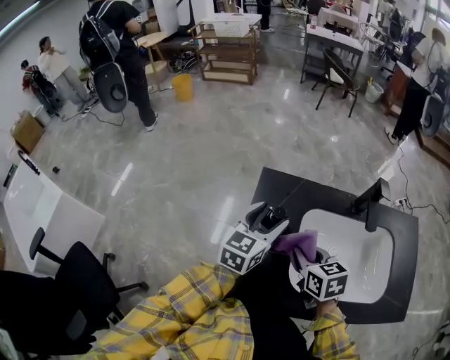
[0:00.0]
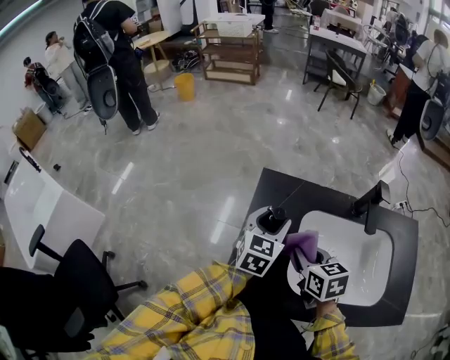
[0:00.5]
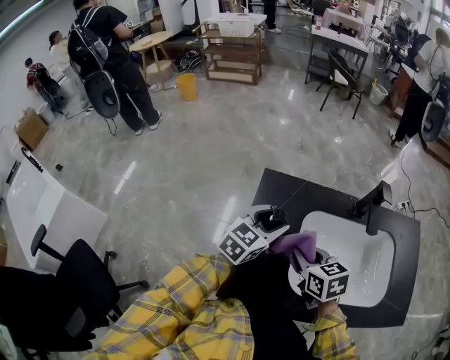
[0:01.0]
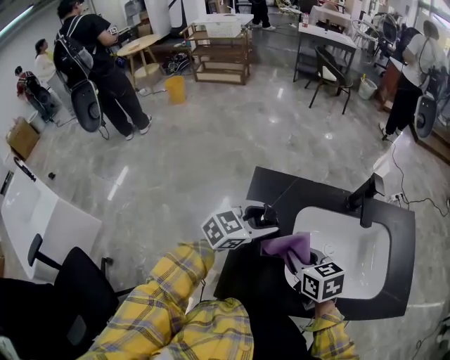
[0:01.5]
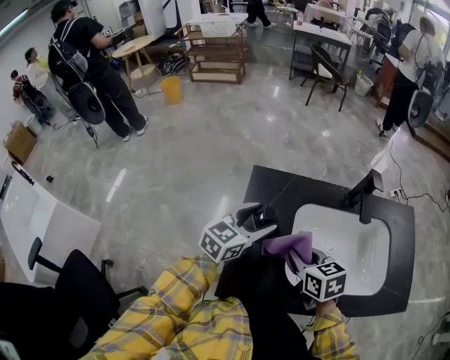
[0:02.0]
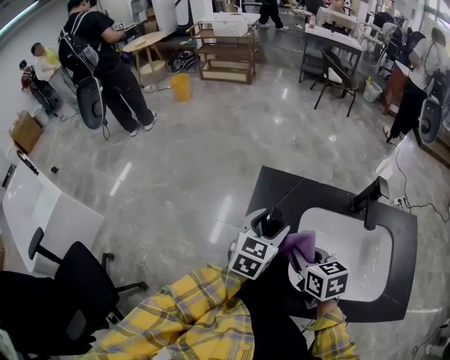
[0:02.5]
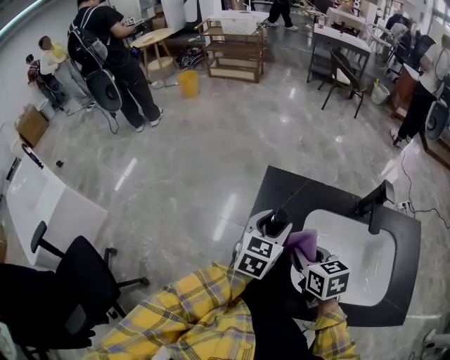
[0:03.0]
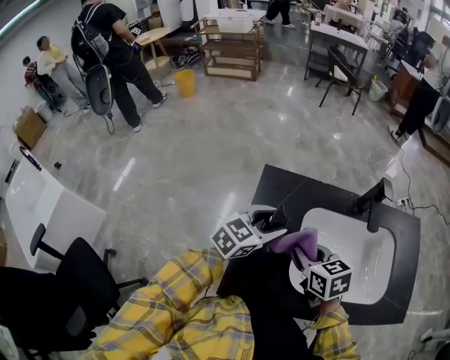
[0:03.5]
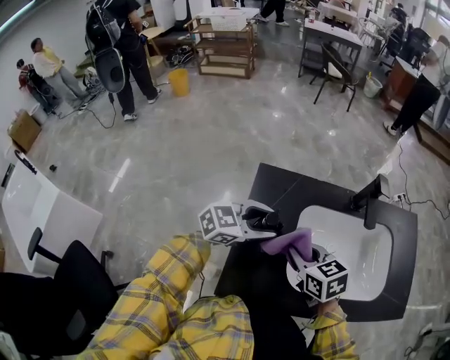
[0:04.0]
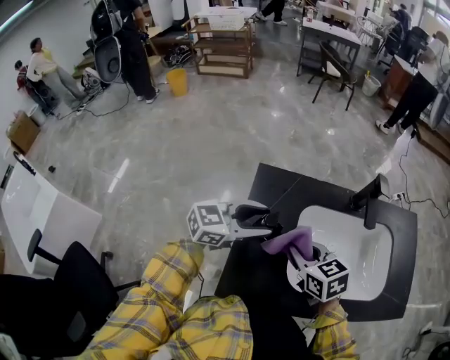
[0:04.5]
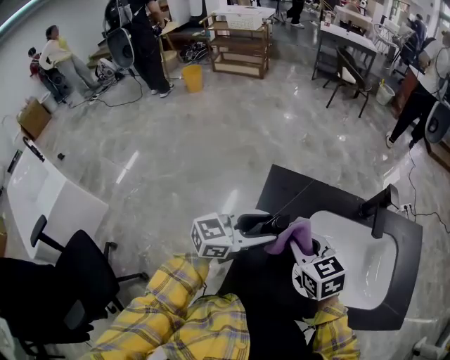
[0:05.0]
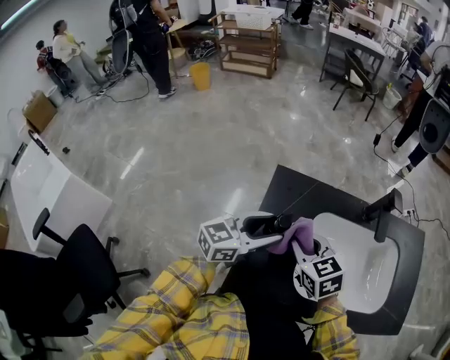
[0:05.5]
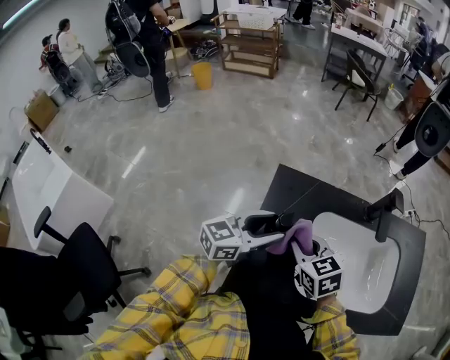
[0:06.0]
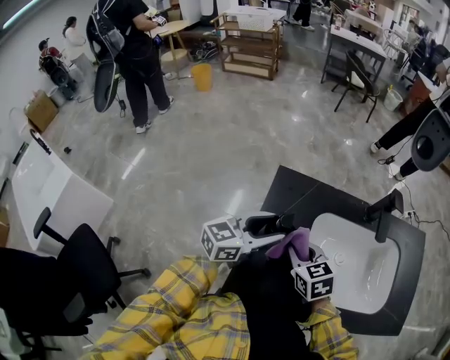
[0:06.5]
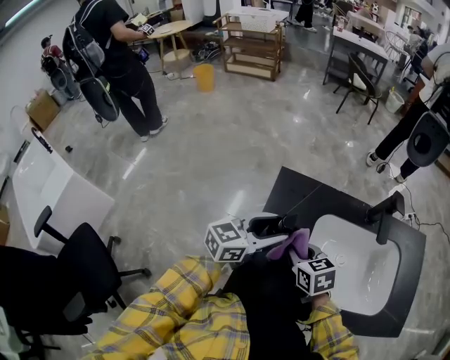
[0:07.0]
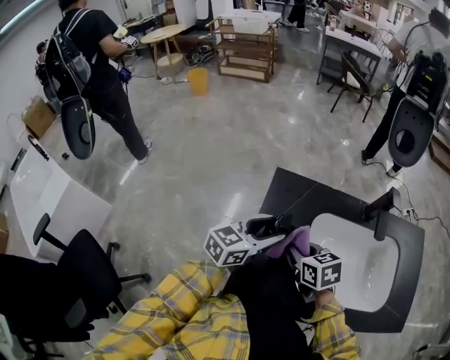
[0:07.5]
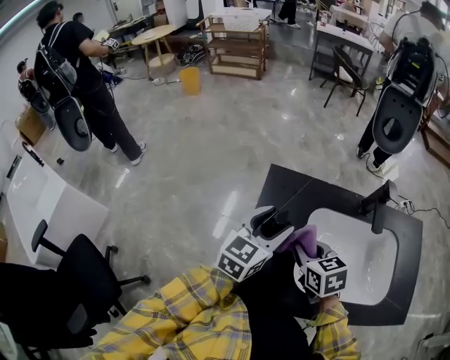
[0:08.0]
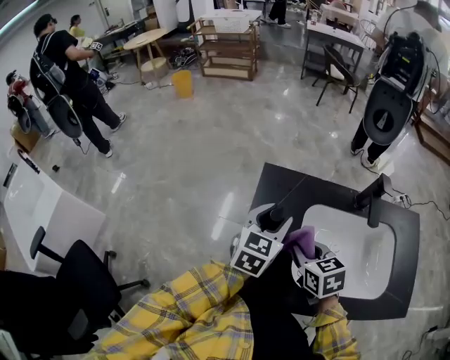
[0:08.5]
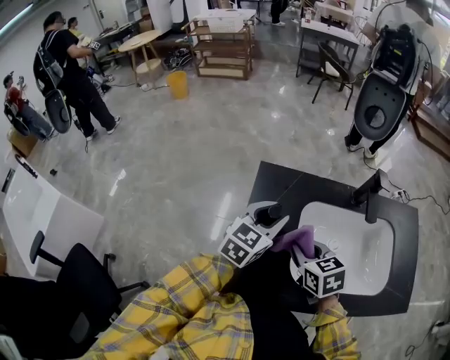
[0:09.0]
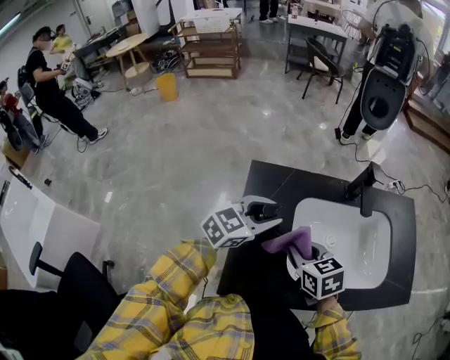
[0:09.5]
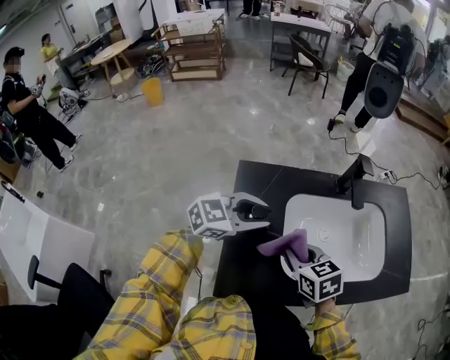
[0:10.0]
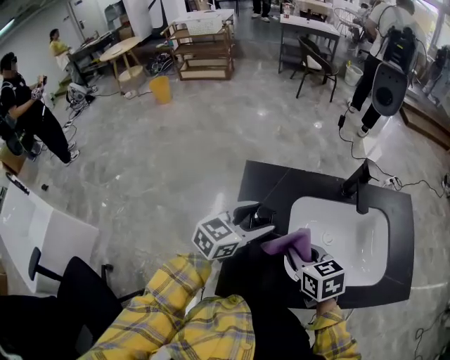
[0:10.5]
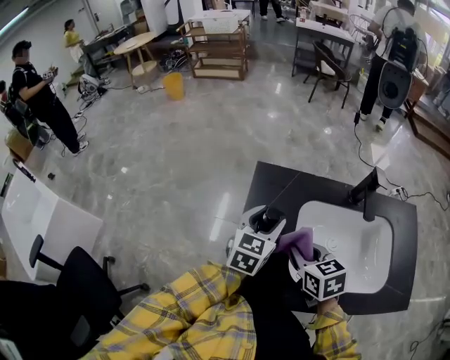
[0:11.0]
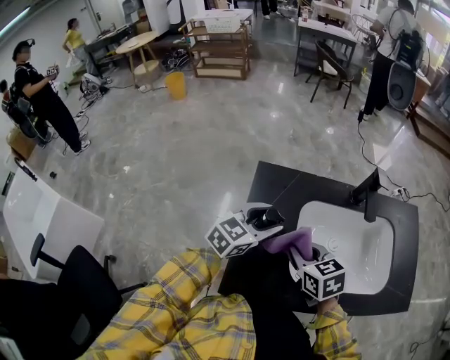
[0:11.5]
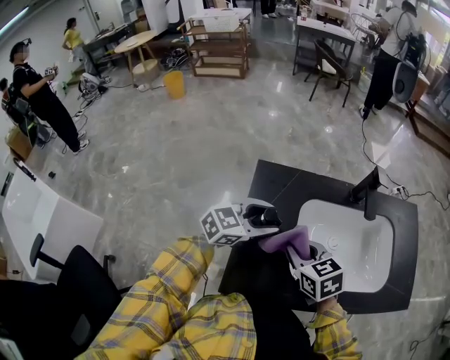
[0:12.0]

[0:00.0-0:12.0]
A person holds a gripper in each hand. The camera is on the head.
0:02.0 to 0:04.0: The left gripper changes its angle by approximately 30 degrees.
0:04.0 to 0:06.0: The left gripper rotates about 30 degrees.
0:06.0 to 0:08.0: The left gripper swivels roughly 20 degrees.
0:08.0 to 0:10.0: The left gripper changes its angle by some 50 degrees, and closes. Meanwhile the right gripper ends up approximately 5 cm from where it was.

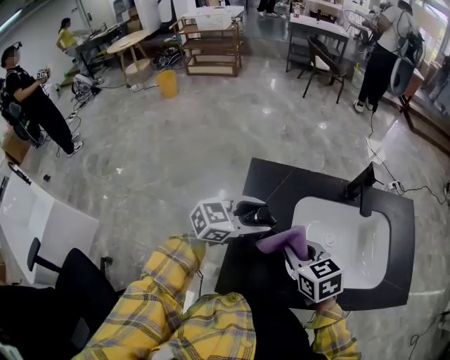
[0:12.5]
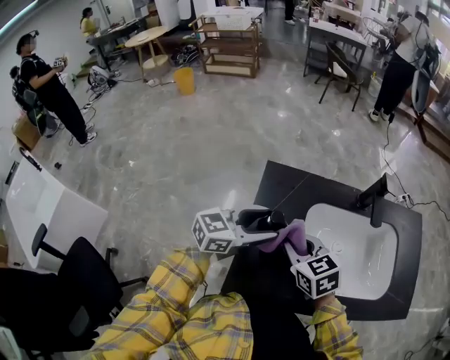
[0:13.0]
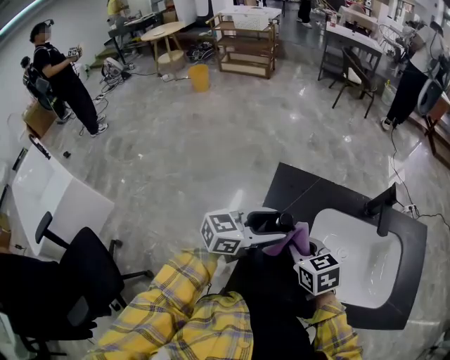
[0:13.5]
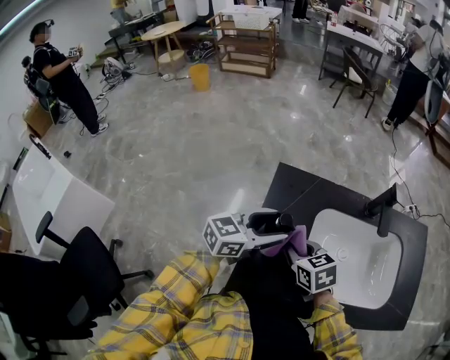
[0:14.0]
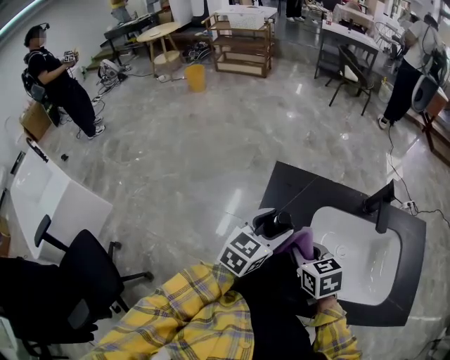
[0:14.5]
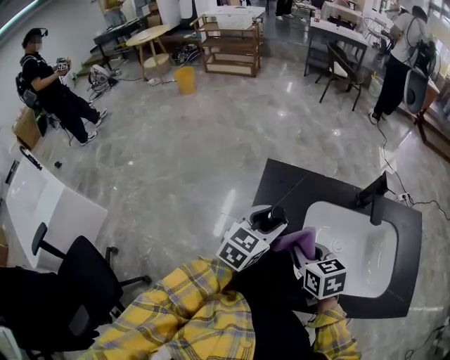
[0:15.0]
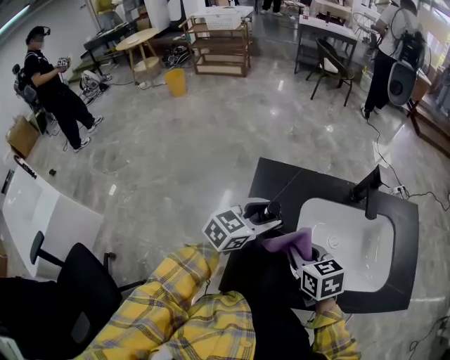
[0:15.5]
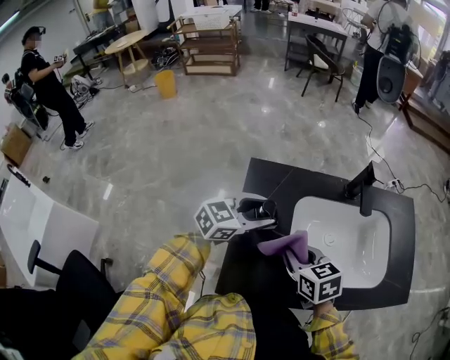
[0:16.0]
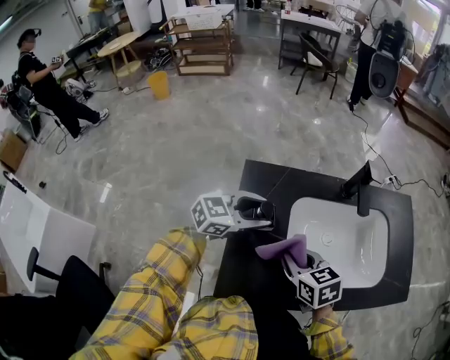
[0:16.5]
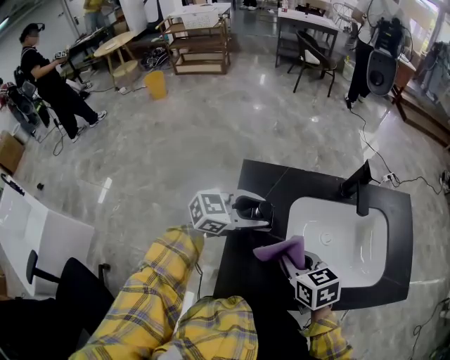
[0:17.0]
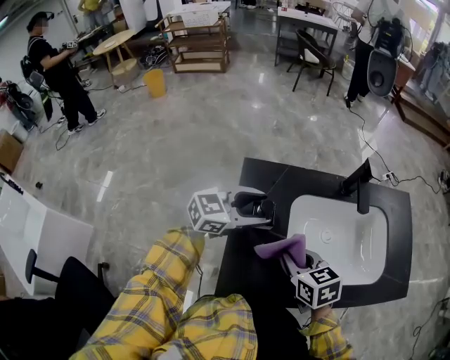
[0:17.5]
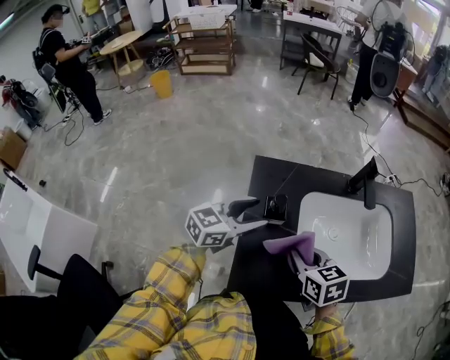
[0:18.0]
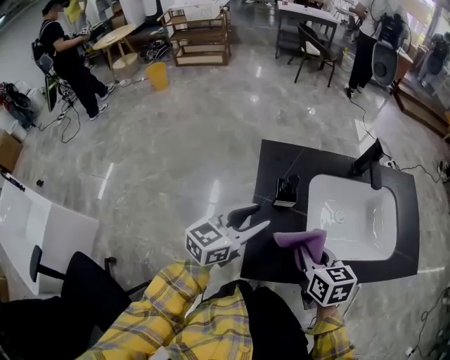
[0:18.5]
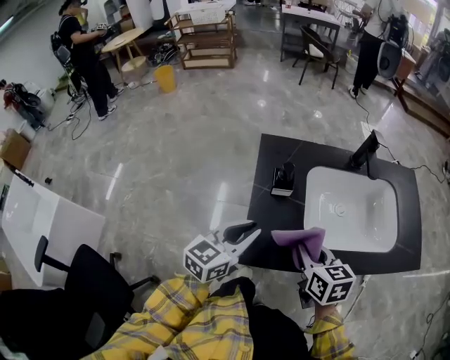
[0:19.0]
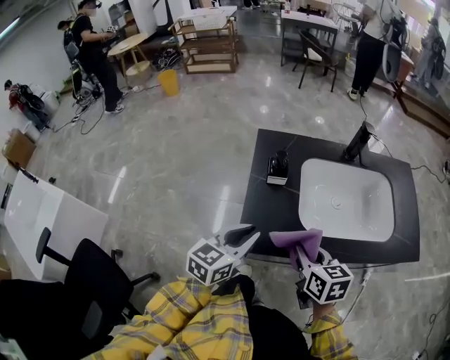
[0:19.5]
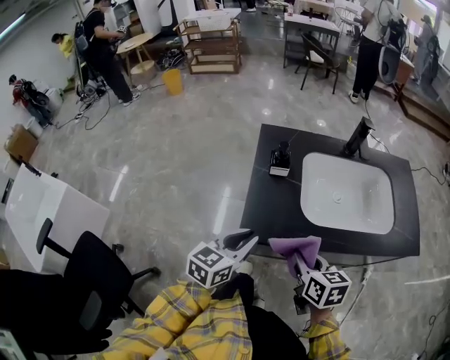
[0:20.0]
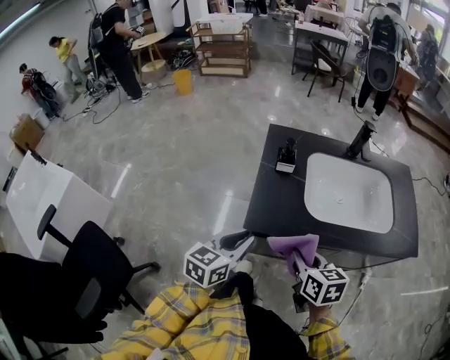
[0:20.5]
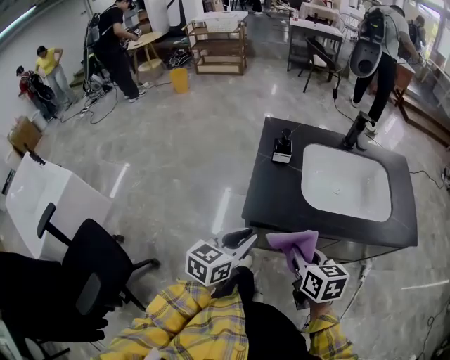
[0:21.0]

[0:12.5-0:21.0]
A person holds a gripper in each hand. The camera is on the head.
0:12.5 to 0:14.5: The left gripper swivels some 40 degrees.
0:14.5 to 0:16.5: The left gripper changes its angle by about 40 degrees.
0:16.5 to 0:19.0: The left gripper heads backward, covering approximately 20 cm, swivels roughly 30 degrees, and closes up, while the right gripper is displaced backward by about 10 cm.
0:19.0 to 0:21.0: Both grippers travel together backward, roughly 15 cm.

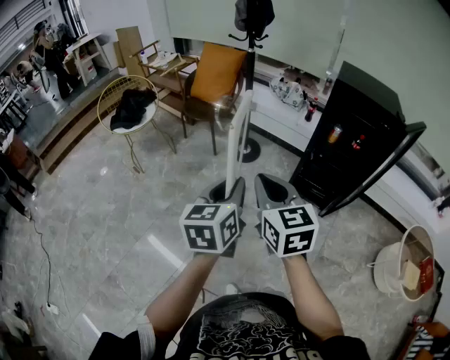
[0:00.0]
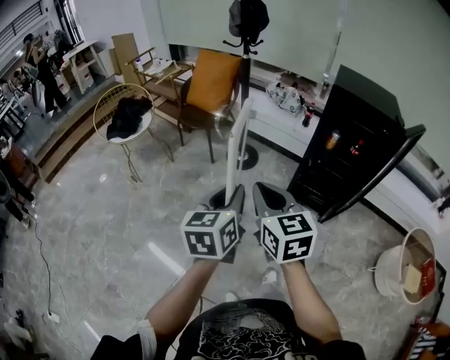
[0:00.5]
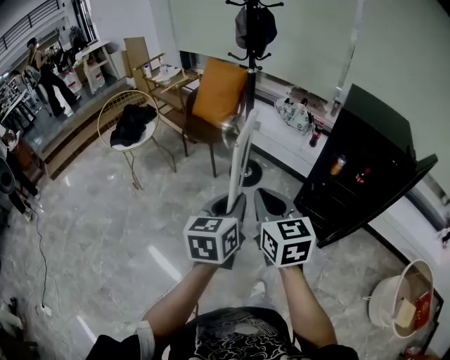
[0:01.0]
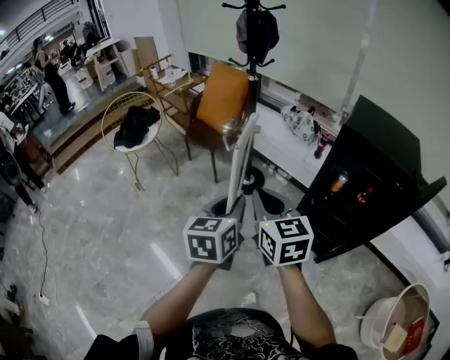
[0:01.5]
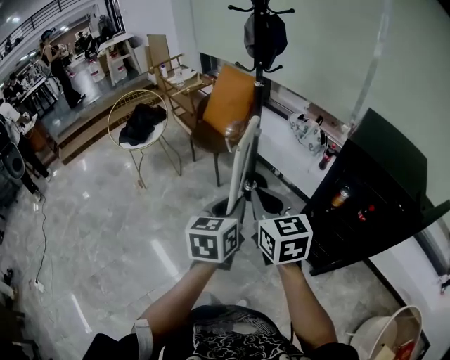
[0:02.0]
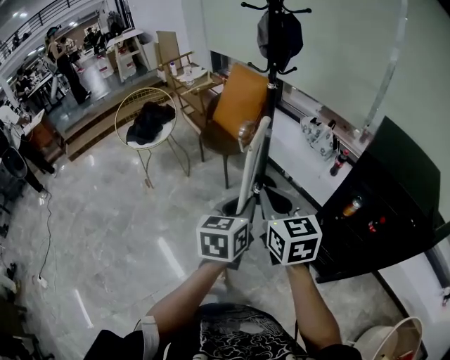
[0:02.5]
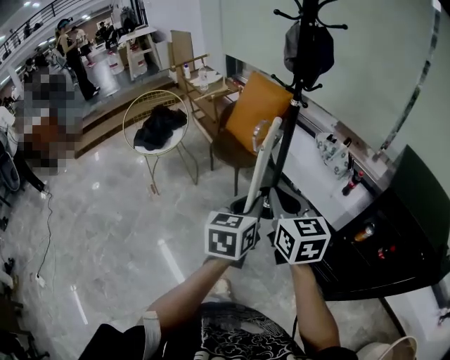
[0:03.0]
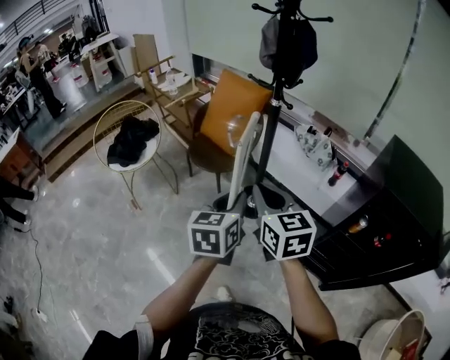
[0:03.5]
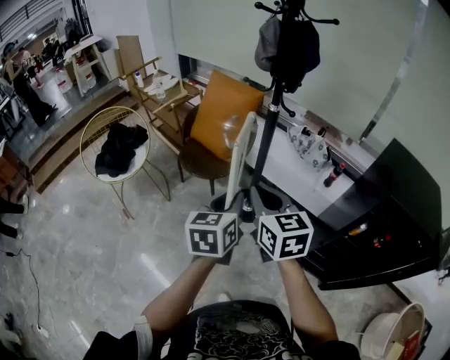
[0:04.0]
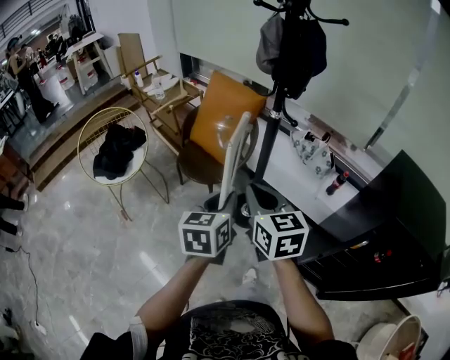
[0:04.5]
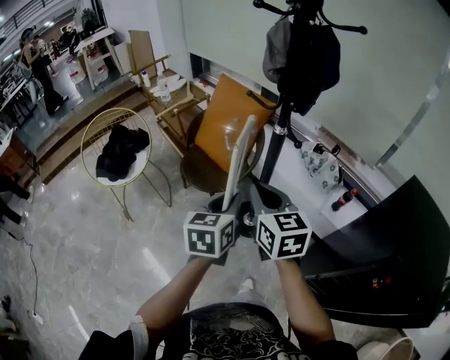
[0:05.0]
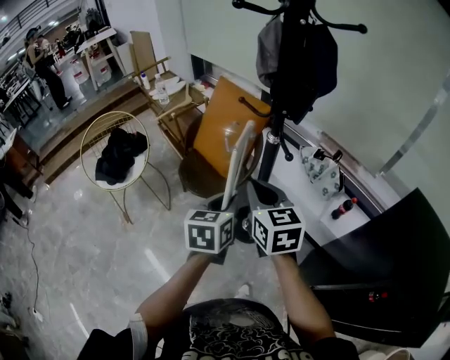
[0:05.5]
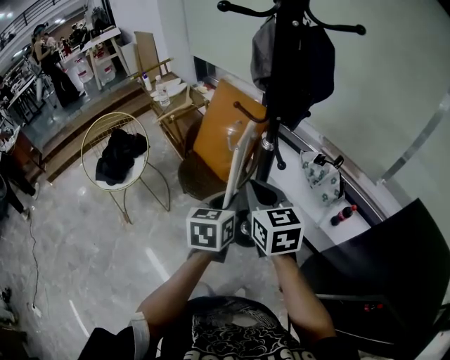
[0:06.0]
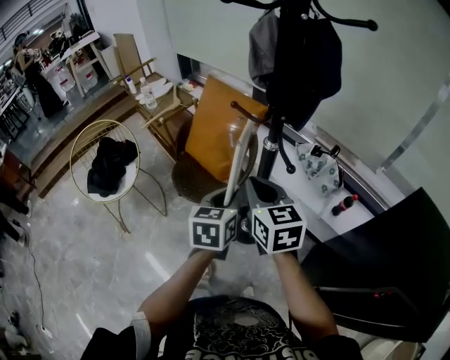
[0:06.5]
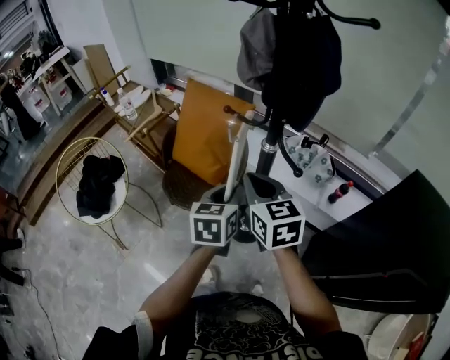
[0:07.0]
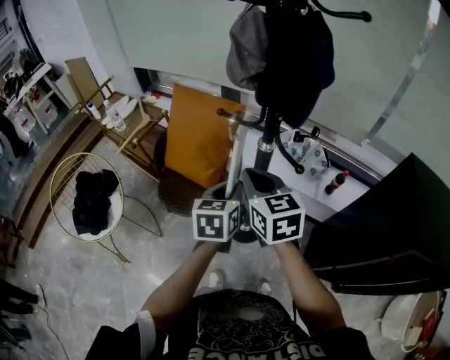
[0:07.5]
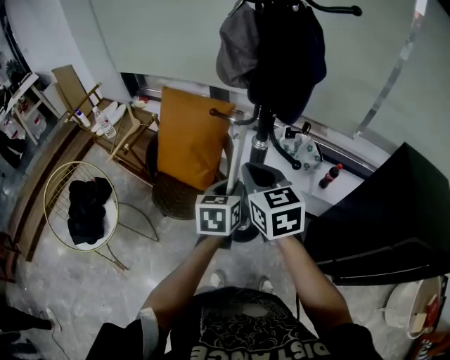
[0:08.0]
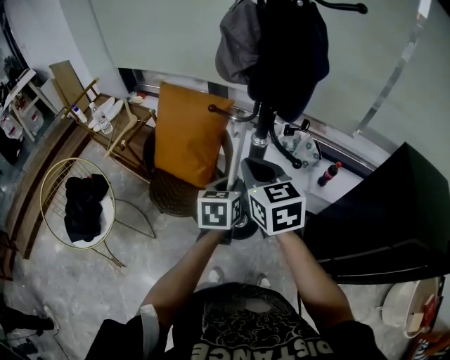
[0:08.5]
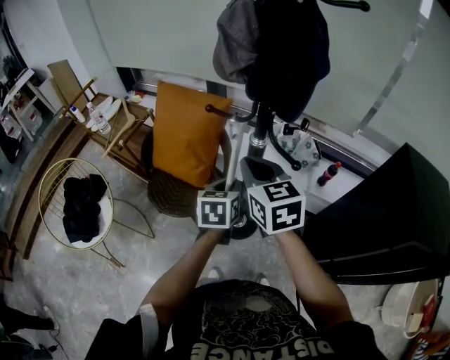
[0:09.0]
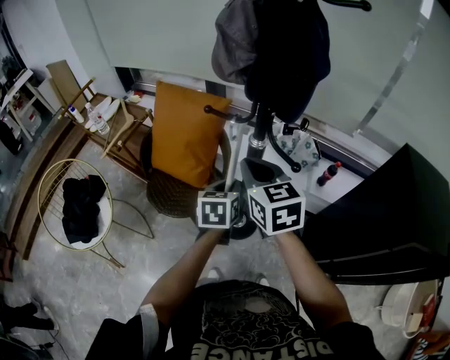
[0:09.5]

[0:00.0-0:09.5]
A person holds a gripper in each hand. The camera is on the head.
0:00.0 to 0:02.0: The two grippers go some 30 cm forward and to the right.
0:02.0 to 0:04.0: Both grippers travel together forward and to the left, some 30 cm.
0:04.0 to 0:05.5: The two grippers go some 20 cm forward.
0:05.5 to 0:07.5: Both grippers travel together forward, some 10 cm.
0:07.5 to 0:09.5: The left gripper heads downward, covering about 5 cm.
